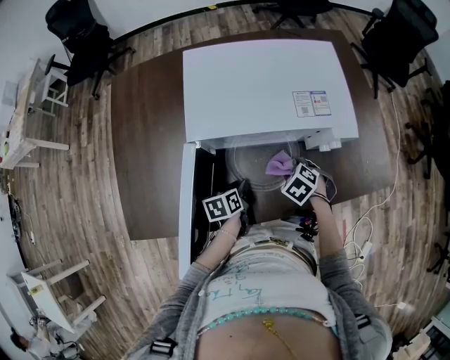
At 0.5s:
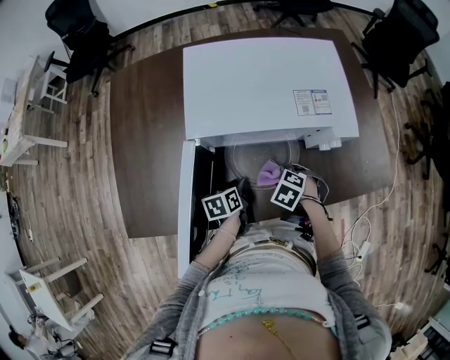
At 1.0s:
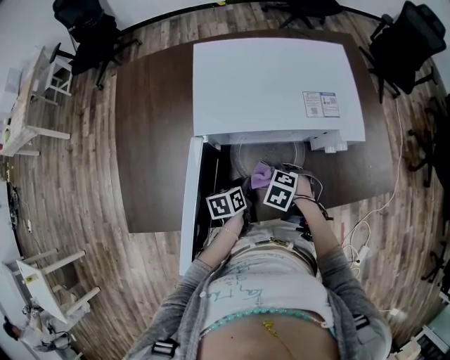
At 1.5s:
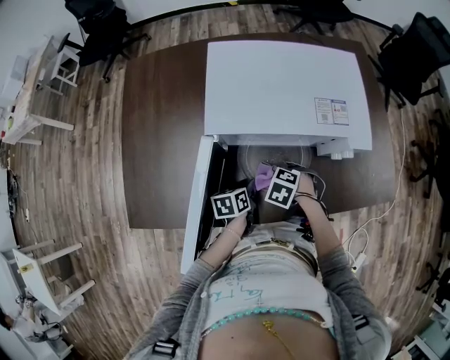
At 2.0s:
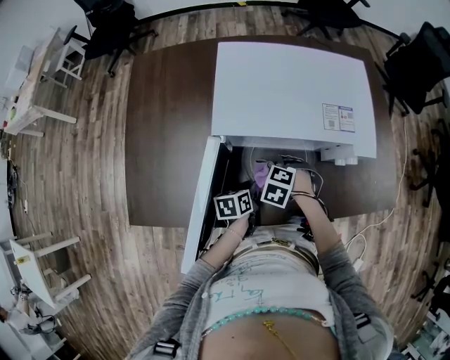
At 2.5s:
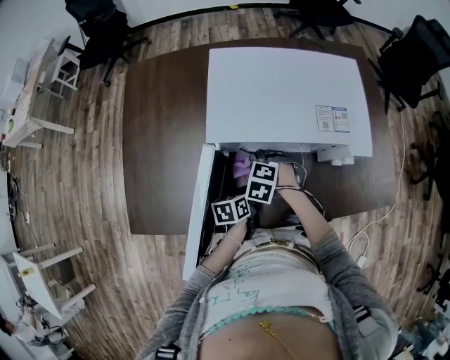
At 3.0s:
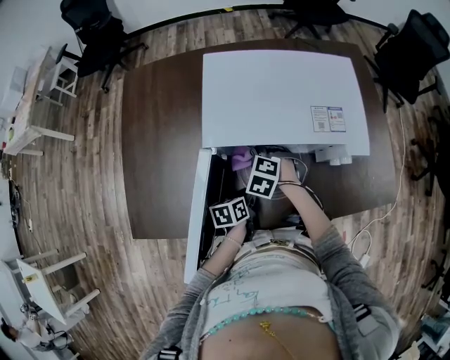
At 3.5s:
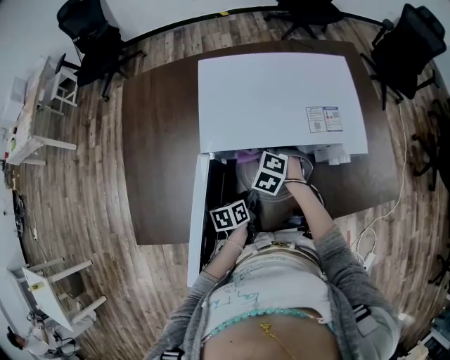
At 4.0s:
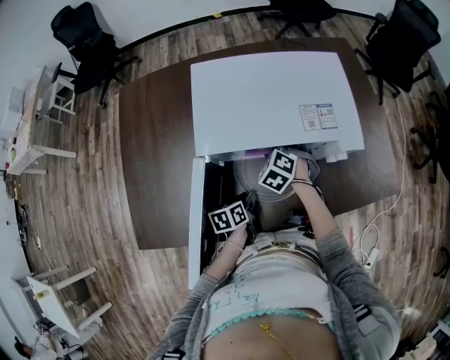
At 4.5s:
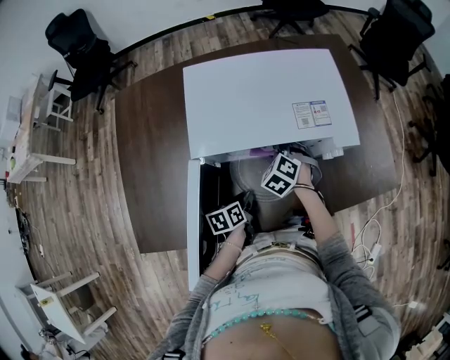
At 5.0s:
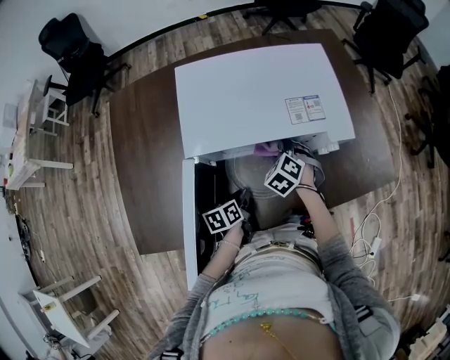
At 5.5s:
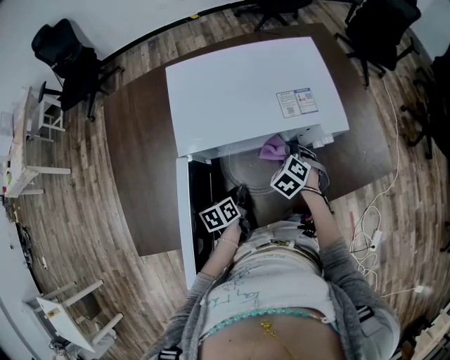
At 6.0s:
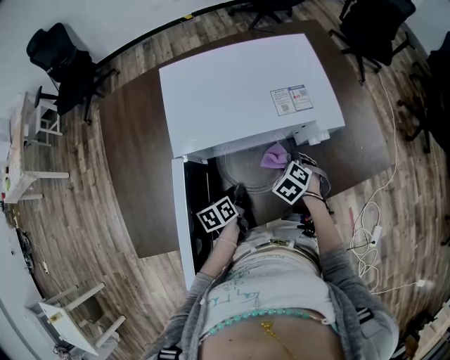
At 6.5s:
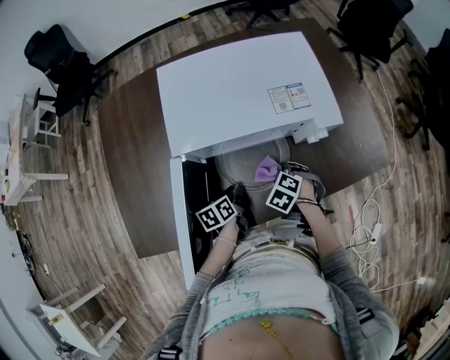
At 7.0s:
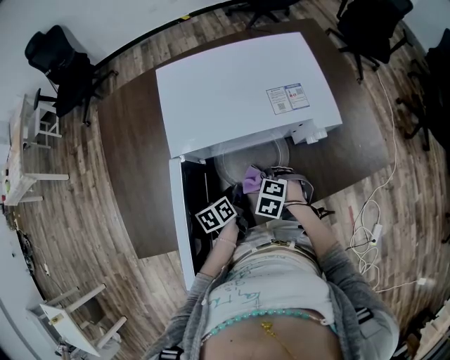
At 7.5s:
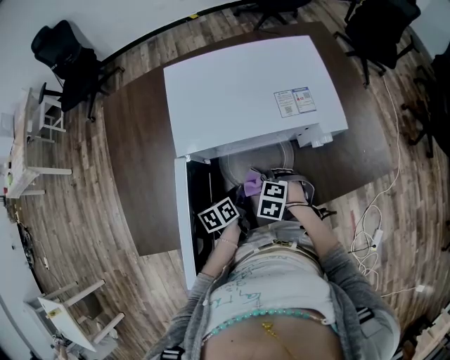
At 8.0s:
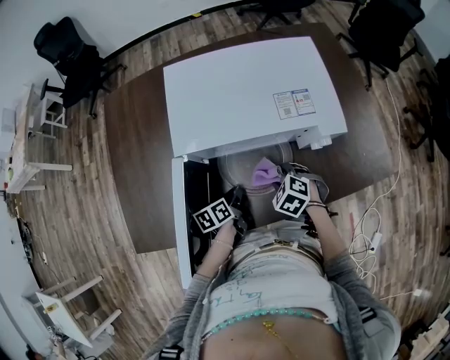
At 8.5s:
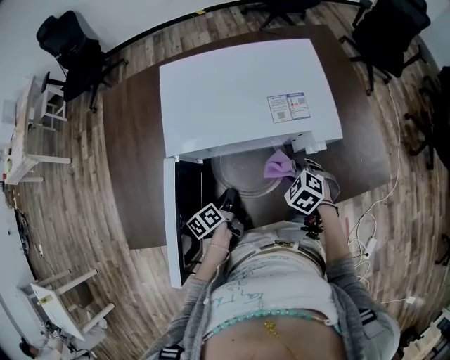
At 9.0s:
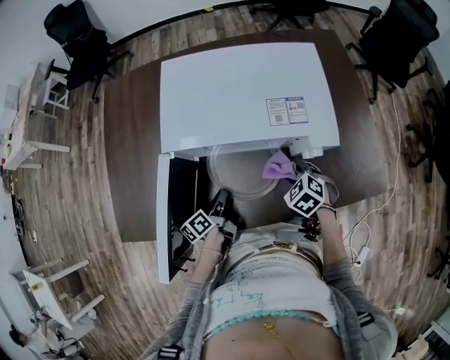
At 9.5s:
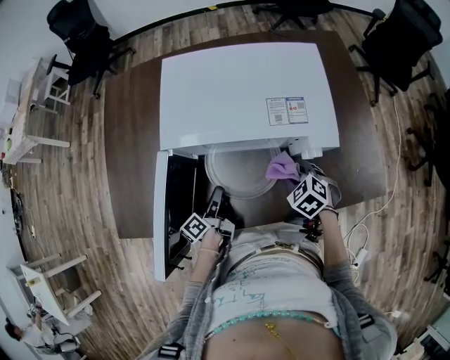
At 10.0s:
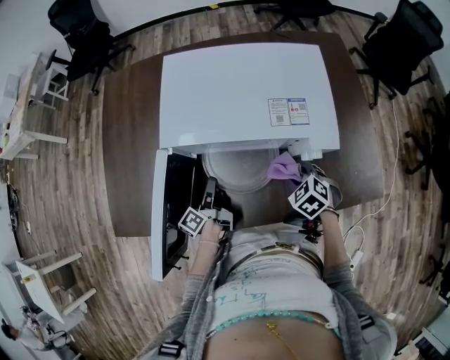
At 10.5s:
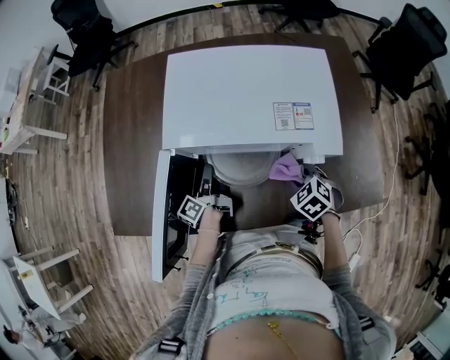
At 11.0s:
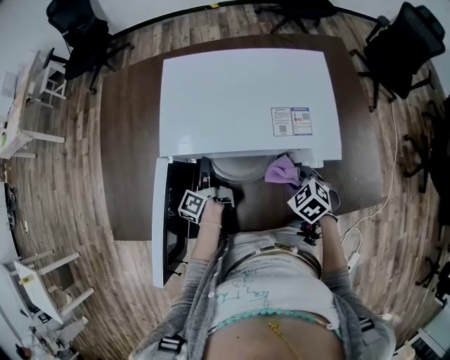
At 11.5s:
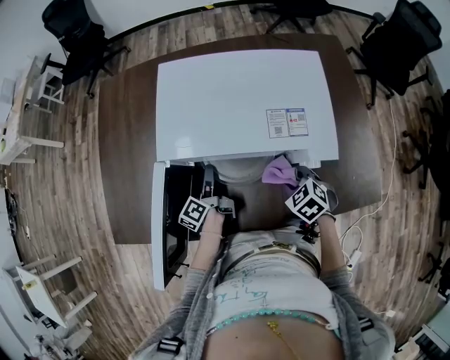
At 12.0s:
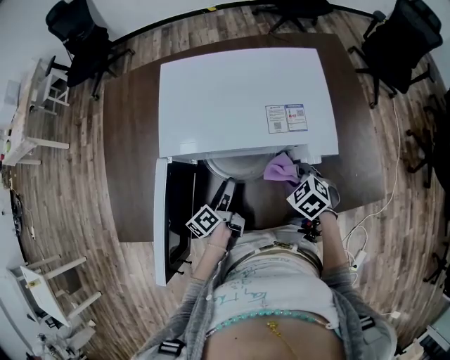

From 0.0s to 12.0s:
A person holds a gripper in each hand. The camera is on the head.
From 0.0s to 2.0s: The right gripper ends up about 10 cm from where it was, and rotates some 30 degrees.
From 2.0s to 4.0s: The right gripper moves roughly 10 cm, and changes its angle by approximately 30 degrees.
From 4.0s to 6.0s: The right gripper heads to the right and backward, covering about 15 cm.
From 8.0s to 10.0s: The left gripper changes place by roughly 5 cm, and angles its fingers upward, by about 30 degrees. The right gripper shifts roughly 10 cm to the right.
From 10.0s to 12.0s: The left gripper is displaced to the right by approximately 5 cm, reaches approximately 10 cm forward, then returns, and opens up.

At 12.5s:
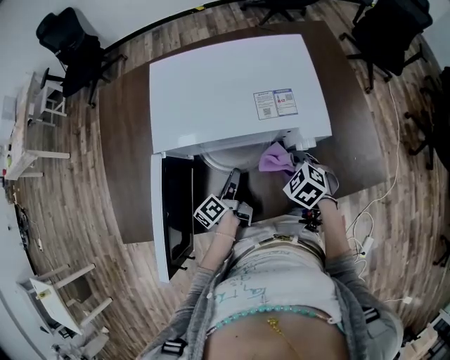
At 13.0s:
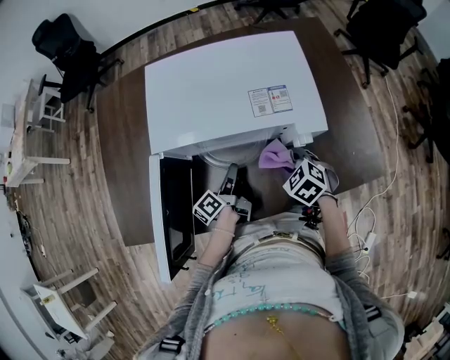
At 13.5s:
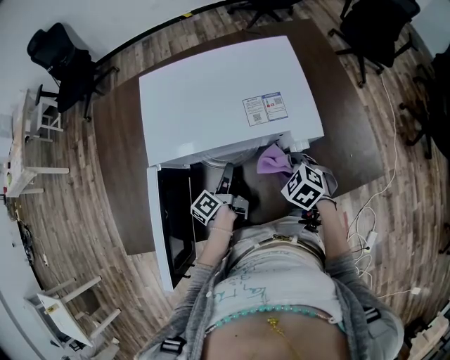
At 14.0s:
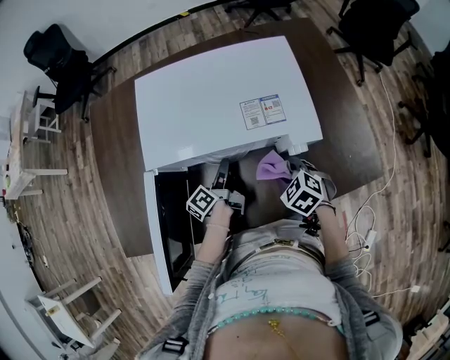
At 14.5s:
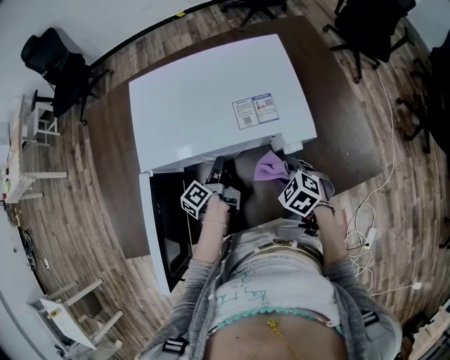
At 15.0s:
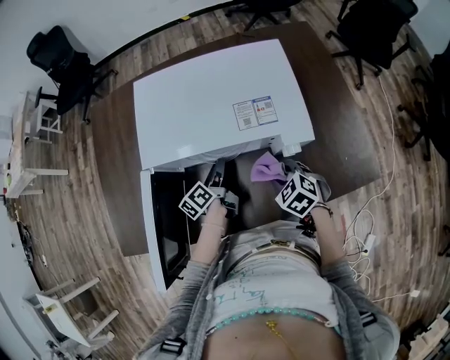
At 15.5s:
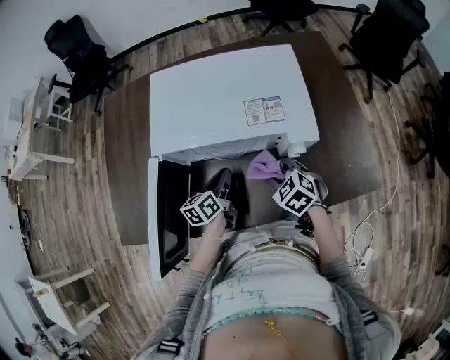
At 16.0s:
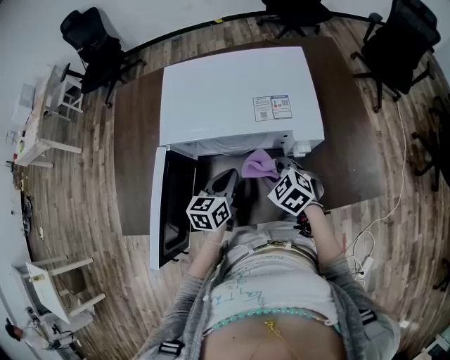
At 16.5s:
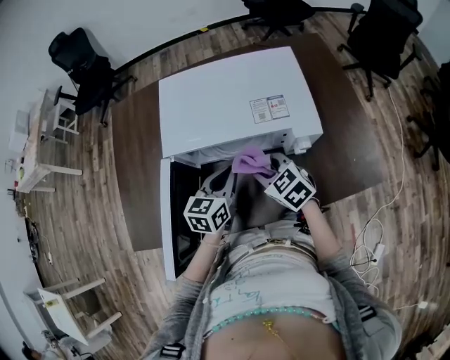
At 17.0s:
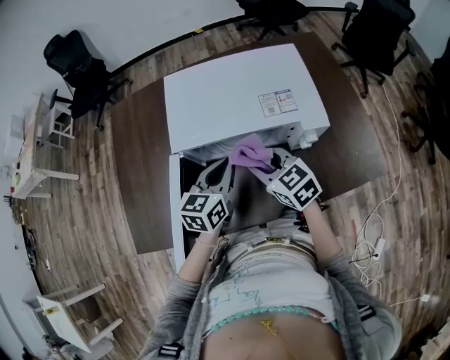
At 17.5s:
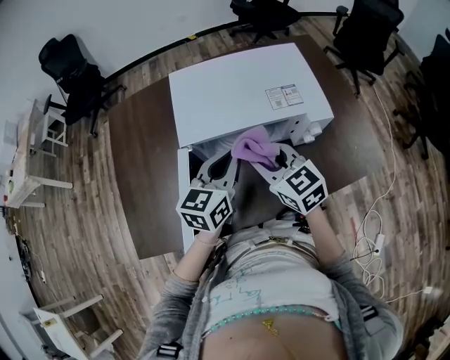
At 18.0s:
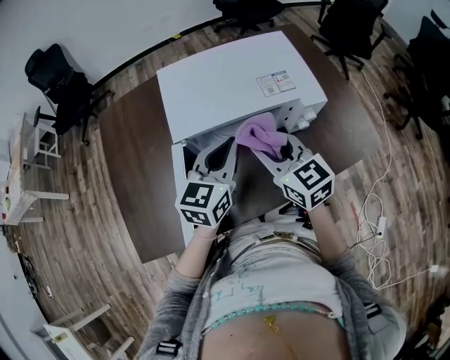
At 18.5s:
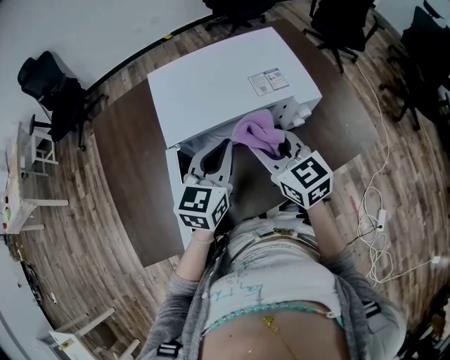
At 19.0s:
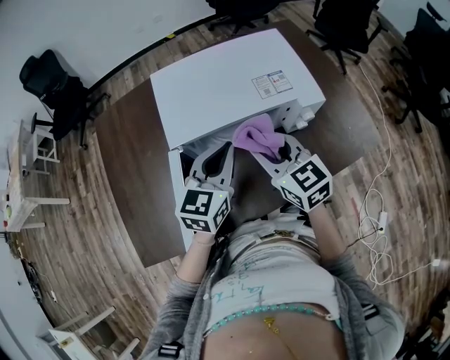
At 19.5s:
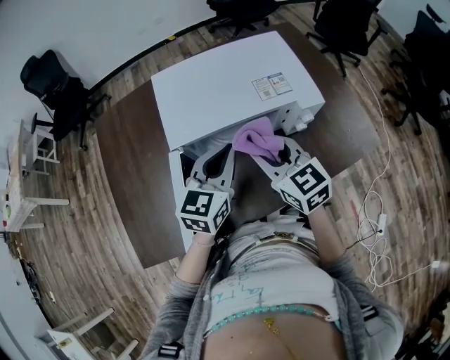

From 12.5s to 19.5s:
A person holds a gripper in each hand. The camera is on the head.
From 12.5s to 14.5s: The left gripper travels forward by roughly 5 cm.
From 14.5s to 16.0s: The left gripper shifts some 10 cm upward and backward, and rotates around the line of its fingers by roughly 60 degrees, clockwise from behind. Meanwhile the right gripper goes some 5 cm to the left.
From 16.0s to 17.5s: The right gripper heads upward and to the left, covering approximately 15 cm, and rotates some 40 degrees, while the left gripper goes about 15 cm upward, and turns by about 20 degrees.
From 17.5s to 19.5s: There are only small adjustments of the grippers.

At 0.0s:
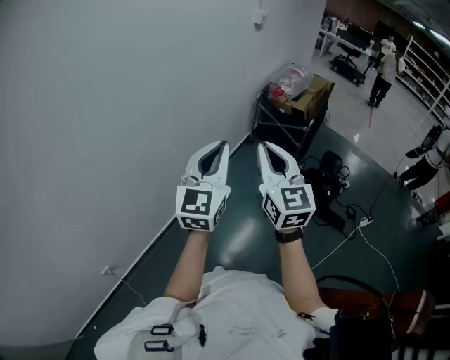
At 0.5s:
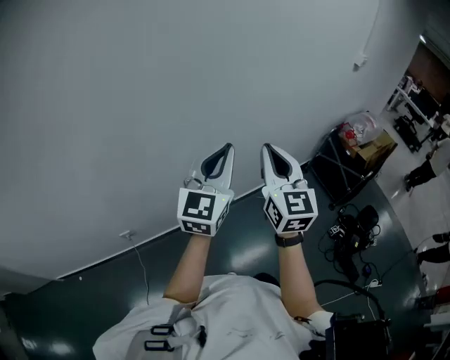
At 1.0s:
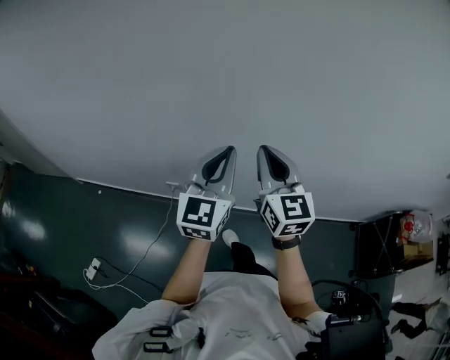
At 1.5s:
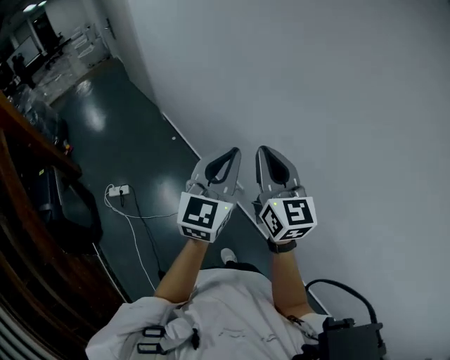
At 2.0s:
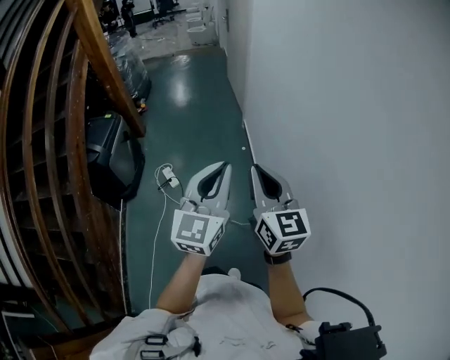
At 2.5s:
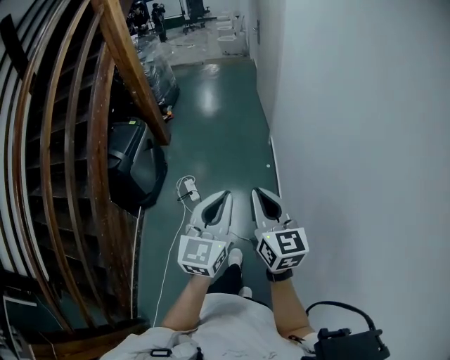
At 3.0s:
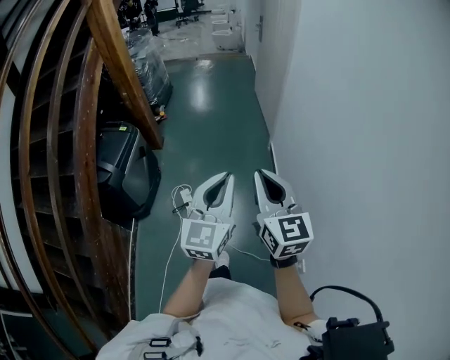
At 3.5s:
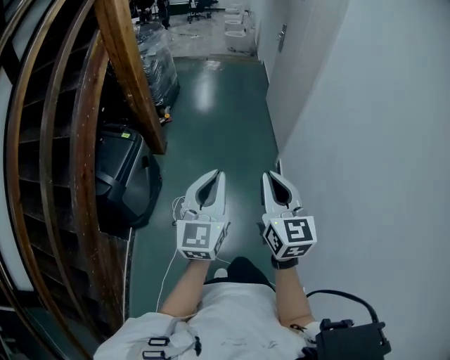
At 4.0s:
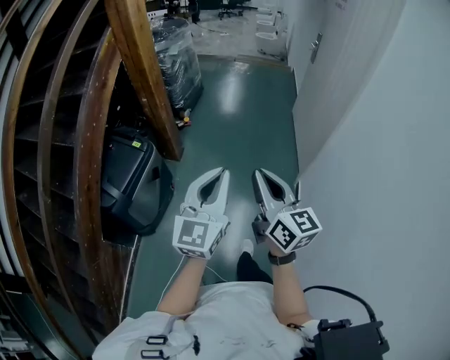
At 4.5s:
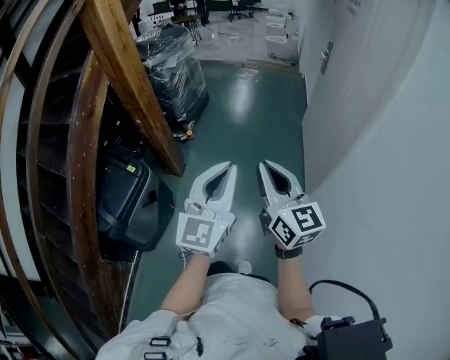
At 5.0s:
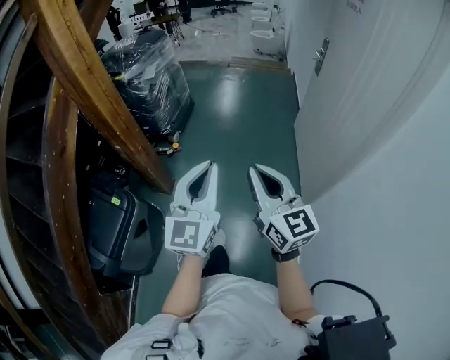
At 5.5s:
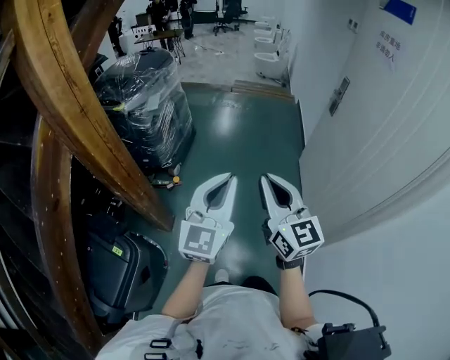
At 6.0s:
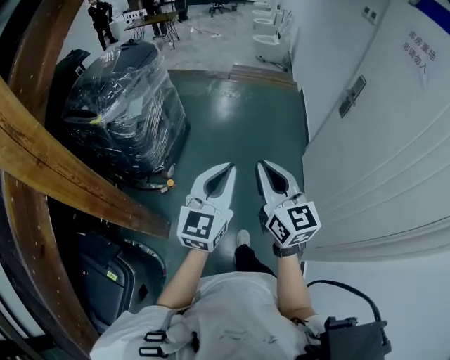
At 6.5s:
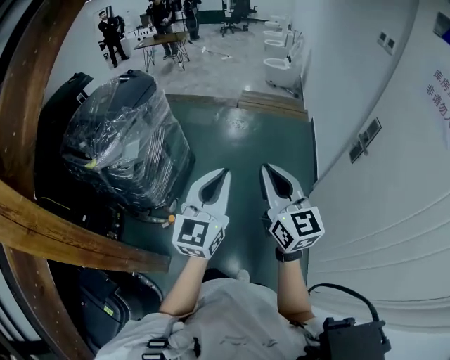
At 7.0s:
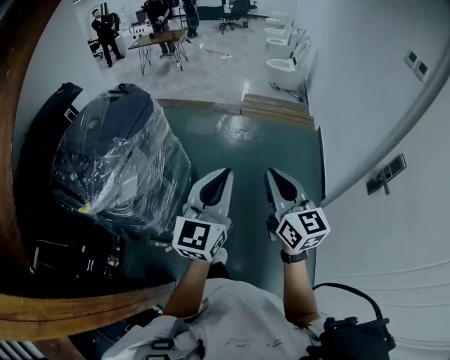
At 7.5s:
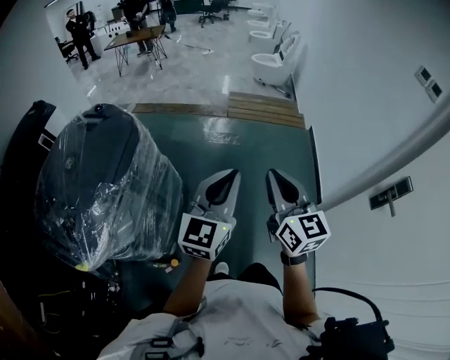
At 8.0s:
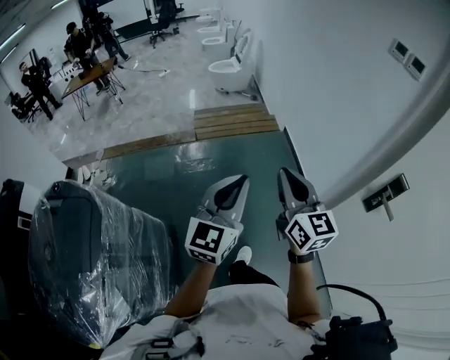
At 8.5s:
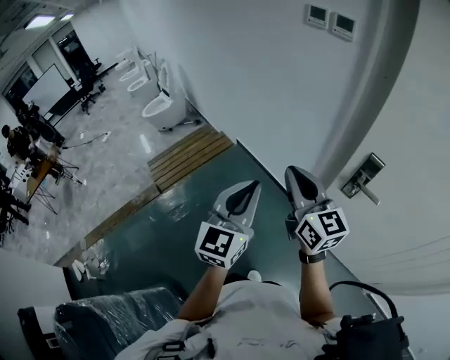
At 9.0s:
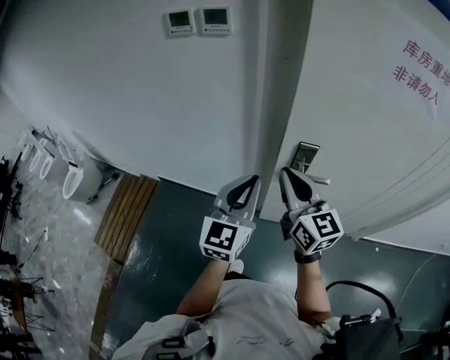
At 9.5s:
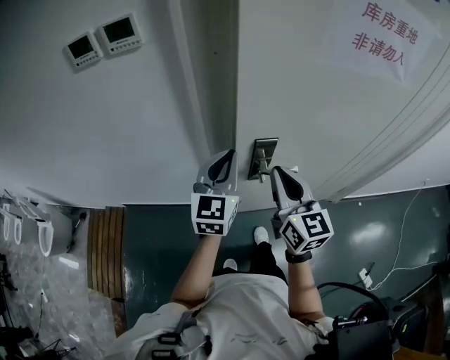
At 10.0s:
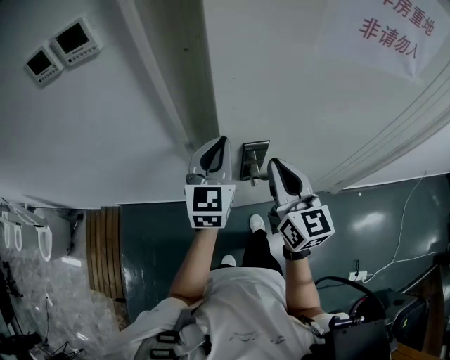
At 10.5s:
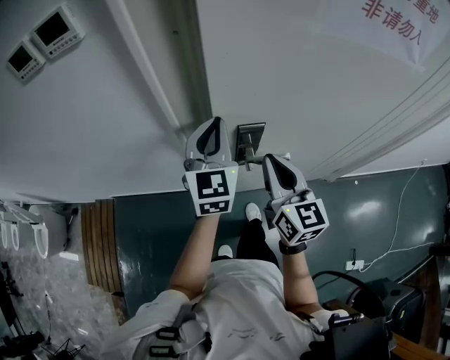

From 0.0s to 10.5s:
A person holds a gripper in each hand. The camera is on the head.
From 0.0s to 2.0s: Both grippers are carried roughly 80 cm. The left gripper swivels roughly 130 degrees. Meanwhile the right gripper changes its angle by about 130 degrees.
From 2.0s to 4.0s: The two grippers travel together, forward, roughly 60 cm. The right gripper changes its angle by some 30 degrees; the left gripper changes its angle by approximately 20 degrees.
From 4.0s to 6.5s: Both grippers are carried forward, roughly 90 cm.
From 6.5s to 8.5s: The pair of grippers is taken approximately 60 cm. The left gripper rotates some 60 degrees, while the right gripper swivels about 50 degrees.
From 8.5s to 10.5s: The left gripper changes place by roughly 50 cm, and rotates approximately 30 degrees. Meanwhile the right gripper changes place by roughly 35 cm, and rotates roughly 60 degrees.
